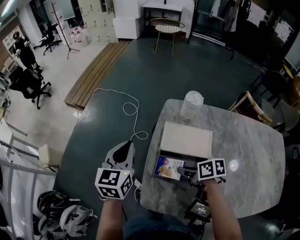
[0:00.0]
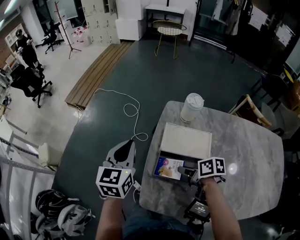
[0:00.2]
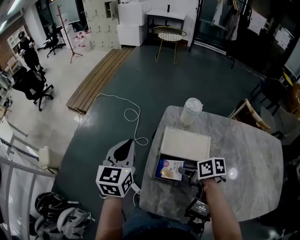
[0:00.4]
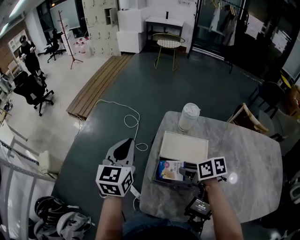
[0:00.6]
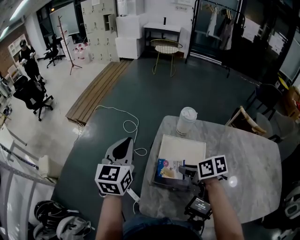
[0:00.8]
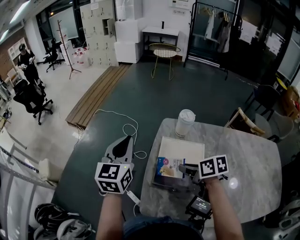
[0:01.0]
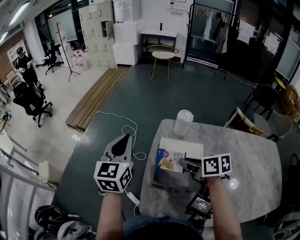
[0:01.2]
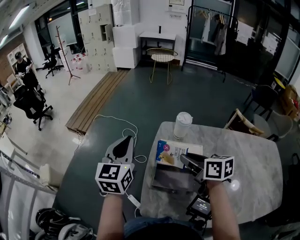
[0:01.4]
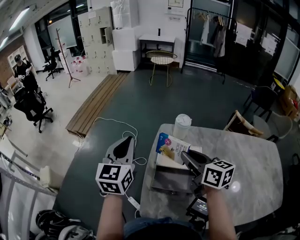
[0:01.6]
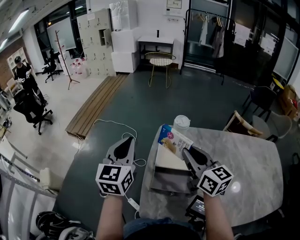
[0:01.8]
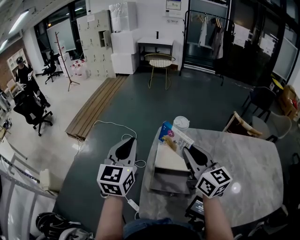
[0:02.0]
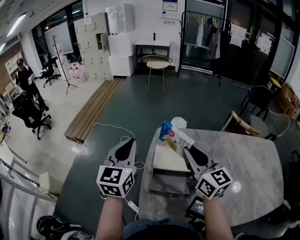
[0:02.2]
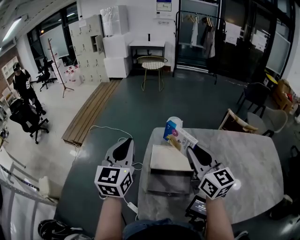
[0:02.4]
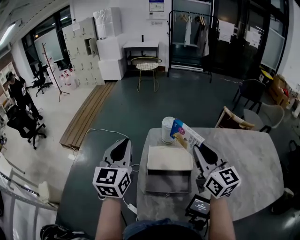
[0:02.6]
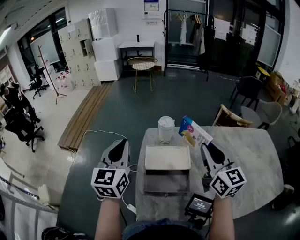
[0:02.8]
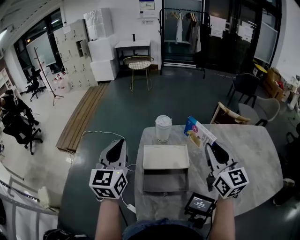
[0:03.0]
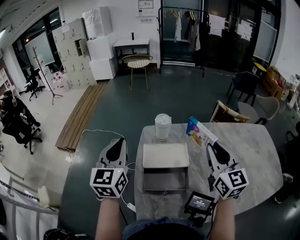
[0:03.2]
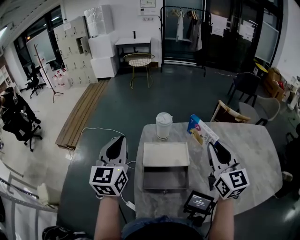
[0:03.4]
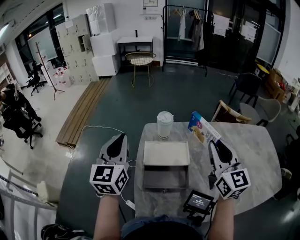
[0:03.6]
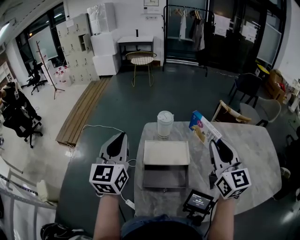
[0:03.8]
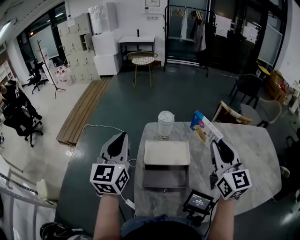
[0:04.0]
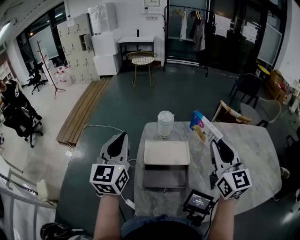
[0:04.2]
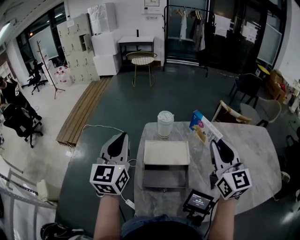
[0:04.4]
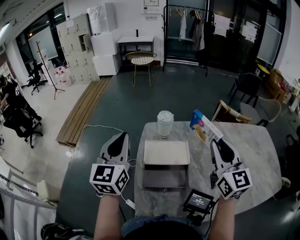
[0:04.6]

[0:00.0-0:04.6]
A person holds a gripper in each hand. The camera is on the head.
0.0 to 1.6 s: The right gripper is displaced upward by some 20 cm, and turns by approximately 50 degrees. Meanwhile the left gripper heads upward, covering about 10 cm.
1.6 to 3.0 s: The left gripper is displaced to the right by some 5 cm, while the right gripper moves to the right and upward, approximately 15 cm, and changes its angle by roughly 40 degrees.
3.0 to 4.6 s: There are only small adjustments of the grippers.

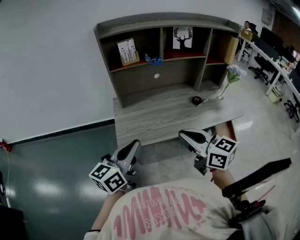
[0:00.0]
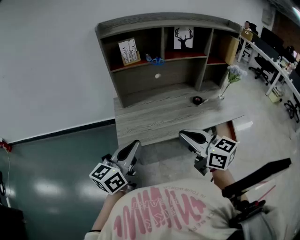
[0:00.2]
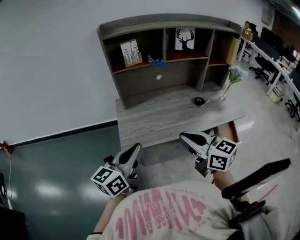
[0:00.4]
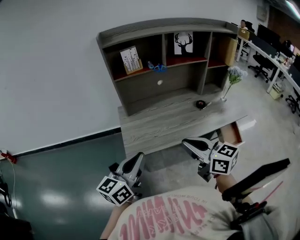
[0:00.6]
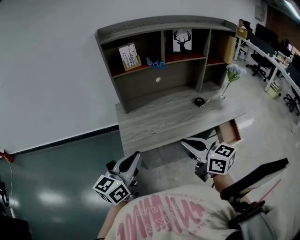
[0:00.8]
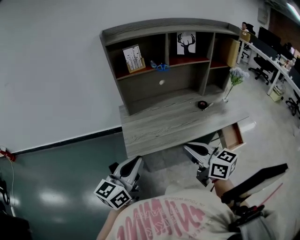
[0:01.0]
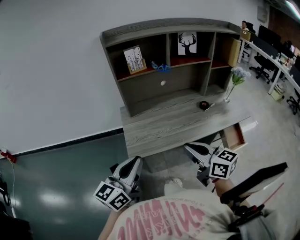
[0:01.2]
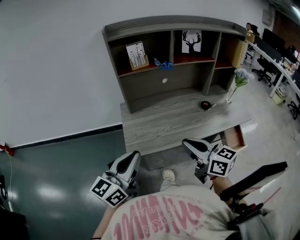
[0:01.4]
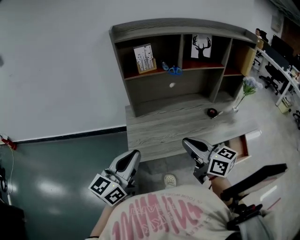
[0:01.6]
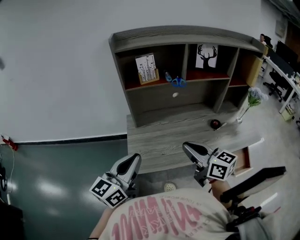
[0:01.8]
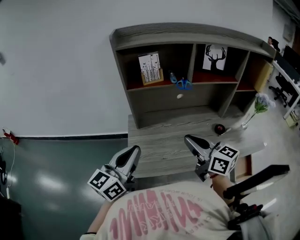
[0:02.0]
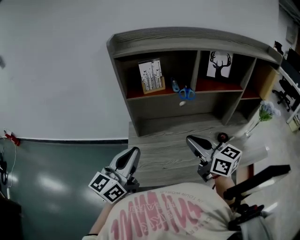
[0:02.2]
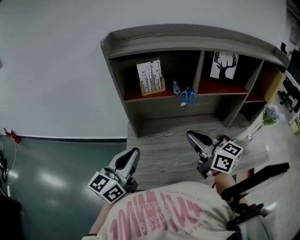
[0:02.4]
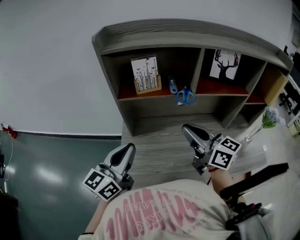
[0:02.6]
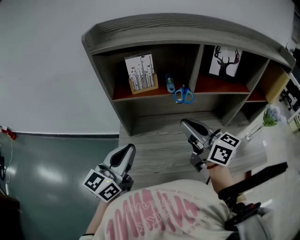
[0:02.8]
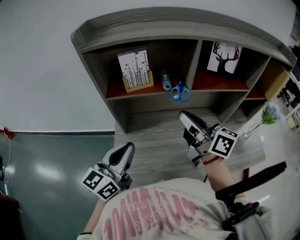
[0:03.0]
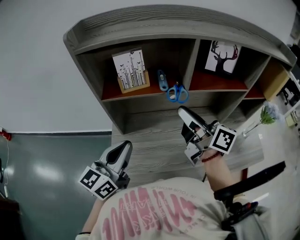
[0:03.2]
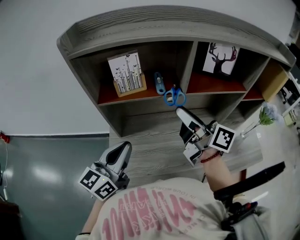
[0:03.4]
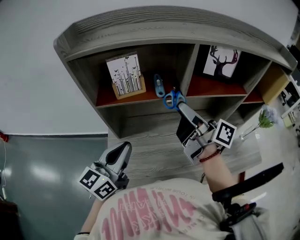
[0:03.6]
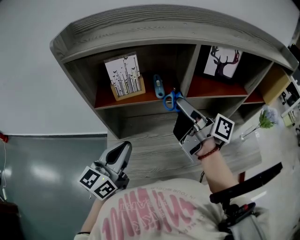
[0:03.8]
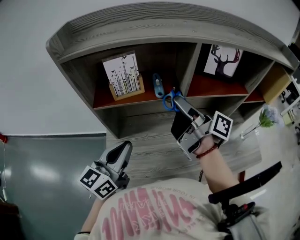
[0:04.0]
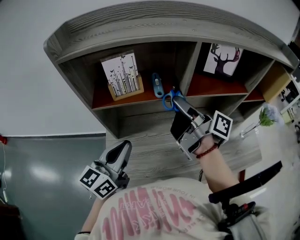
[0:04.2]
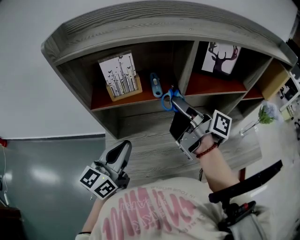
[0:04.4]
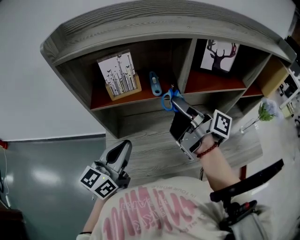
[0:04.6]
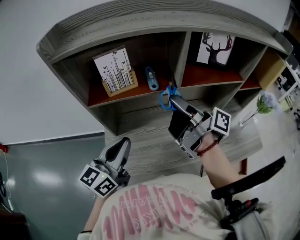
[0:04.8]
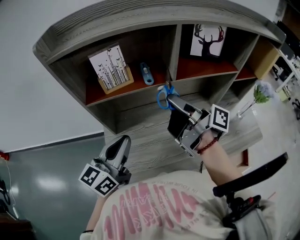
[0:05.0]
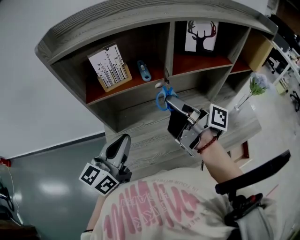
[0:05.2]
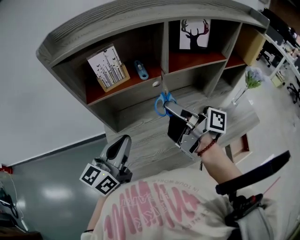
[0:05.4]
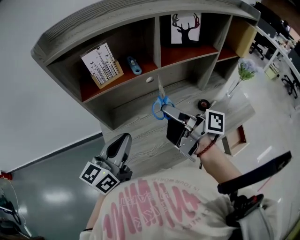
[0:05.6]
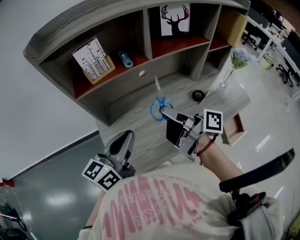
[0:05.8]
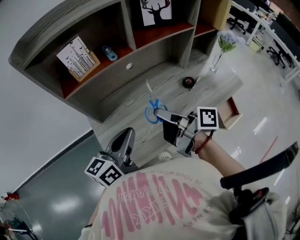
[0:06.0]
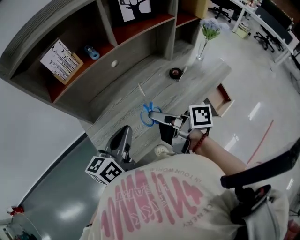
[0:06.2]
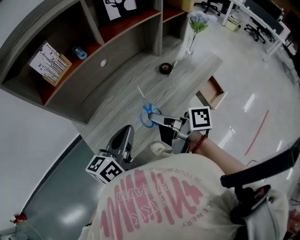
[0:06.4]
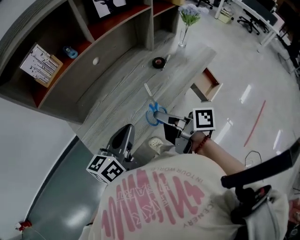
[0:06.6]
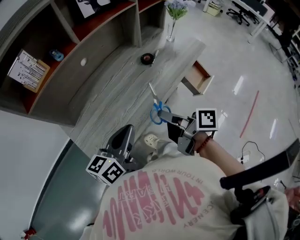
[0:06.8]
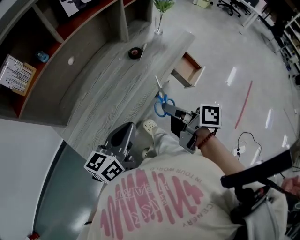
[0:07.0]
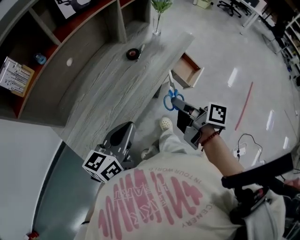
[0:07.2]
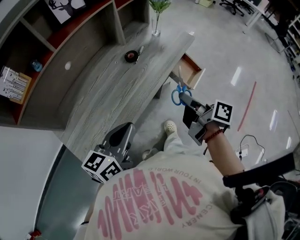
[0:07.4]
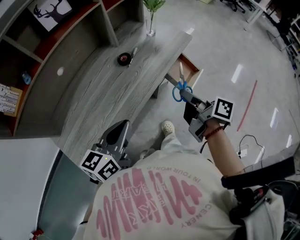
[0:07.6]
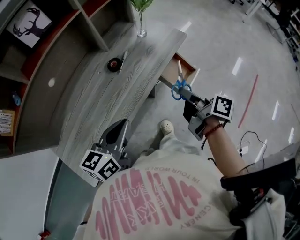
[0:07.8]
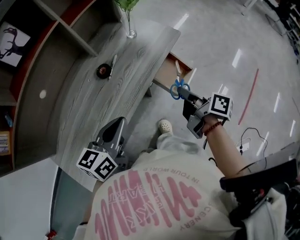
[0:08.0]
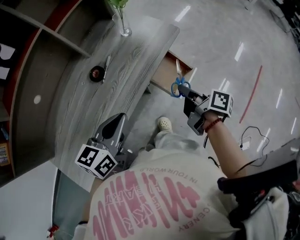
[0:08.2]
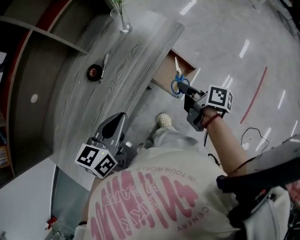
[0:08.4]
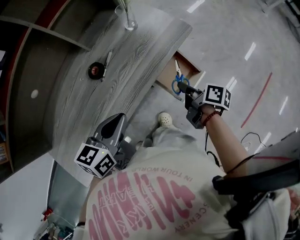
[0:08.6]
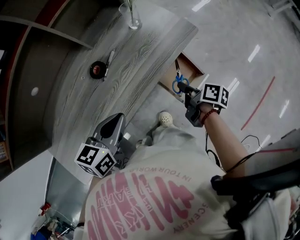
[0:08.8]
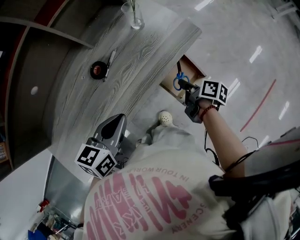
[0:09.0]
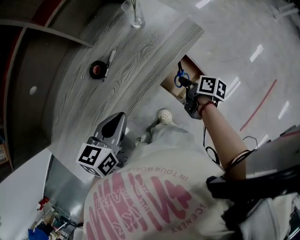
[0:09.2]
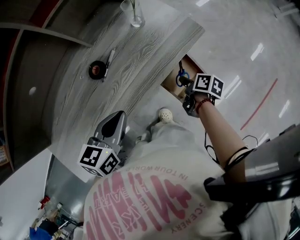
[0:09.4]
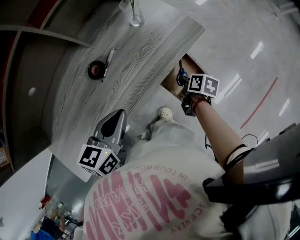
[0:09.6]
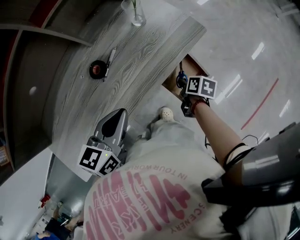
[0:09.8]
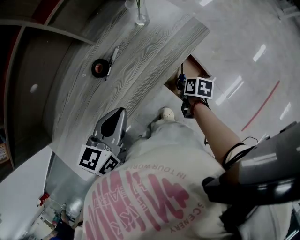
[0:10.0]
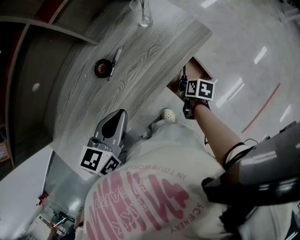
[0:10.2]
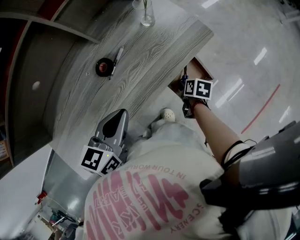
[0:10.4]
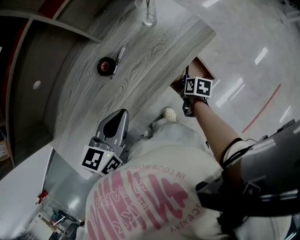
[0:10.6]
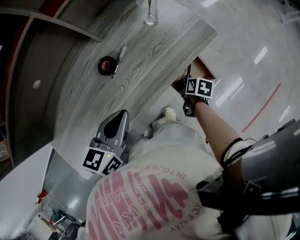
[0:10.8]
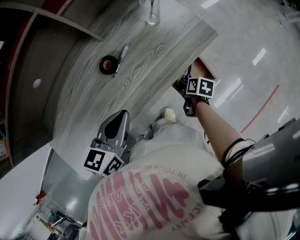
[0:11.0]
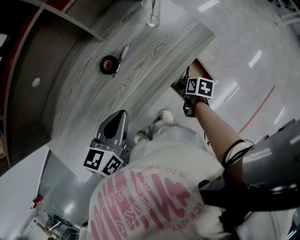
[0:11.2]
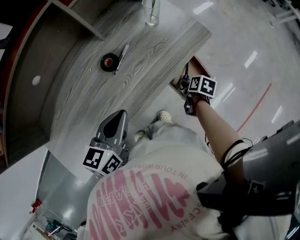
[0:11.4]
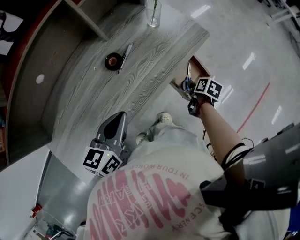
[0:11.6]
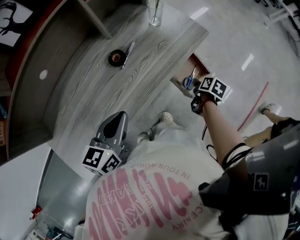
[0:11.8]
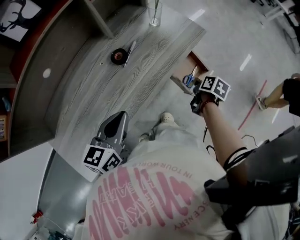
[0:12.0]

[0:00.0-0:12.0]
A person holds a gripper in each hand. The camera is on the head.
0.0 to 1.6 s: The right gripper moves forward, about 5 cm. The left gripper travels to the left by some 5 cm.
1.6 to 3.0 s: Both grippers move forward, roughly 25 cm.
3.0 to 4.4 s: Both grippers travel together forward, roughly 5 cm. The right gripper changes its angle by some 40 degrees, and opens, then closes once more.
4.4 to 6.0 s: The left gripper heads backward, covering some 10 cm, and rotates some 20 degrees, while the right gripper heads backward, covering roughly 20 cm.
6.0 to 7.6 s: The left gripper changes place by some 20 cm, and changes its angle by approximately 30 degrees, while the right gripper changes place by roughly 35 cm, and rotates about 50 degrees.
7.6 to 9.0 s: The right gripper shifts approximately 30 cm downward, forward and to the right, and turns by about 30 degrees, while the left gripper goes approximately 20 cm forward, to the right and downward, and turns by roughly 20 degrees.
9.0 to 10.4 s: The right gripper moves downward, some 10 cm, and changes its angle by roughly 30 degrees.
10.4 to 12.0 s: The left gripper goes some 10 cm backward and to the left, while the right gripper heads upward, covering some 10 cm, rotates some 20 degrees, and opens, then closes again.

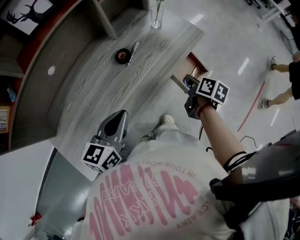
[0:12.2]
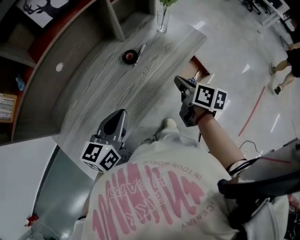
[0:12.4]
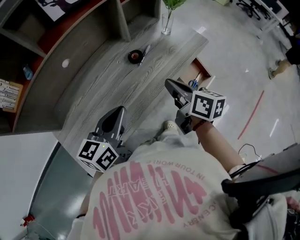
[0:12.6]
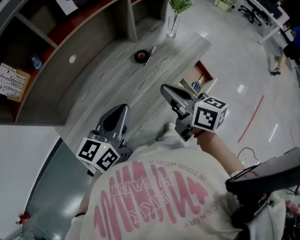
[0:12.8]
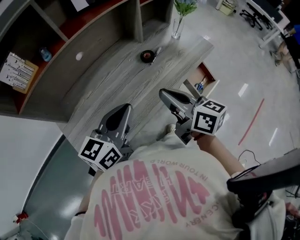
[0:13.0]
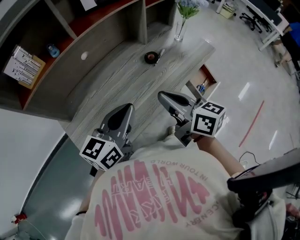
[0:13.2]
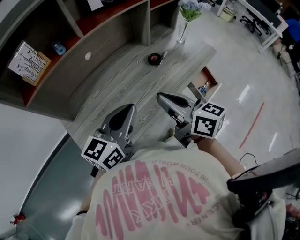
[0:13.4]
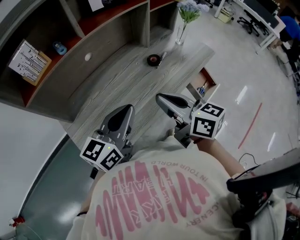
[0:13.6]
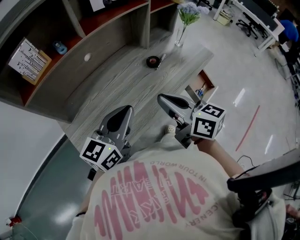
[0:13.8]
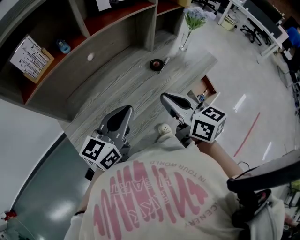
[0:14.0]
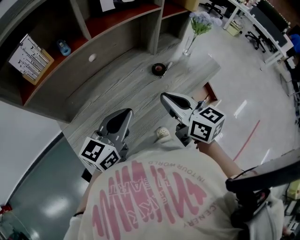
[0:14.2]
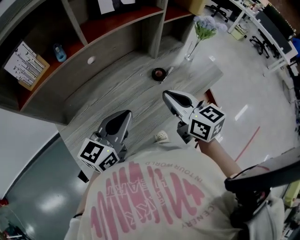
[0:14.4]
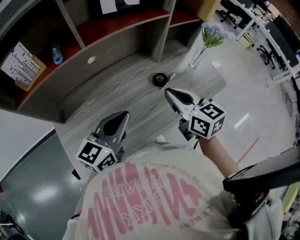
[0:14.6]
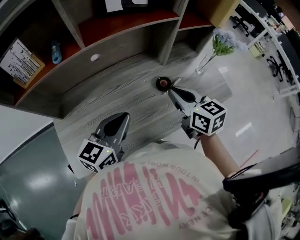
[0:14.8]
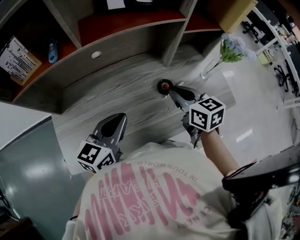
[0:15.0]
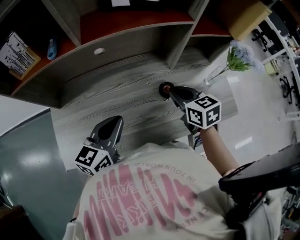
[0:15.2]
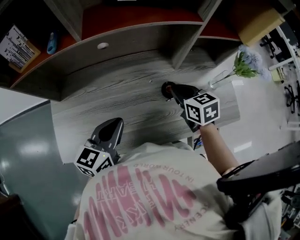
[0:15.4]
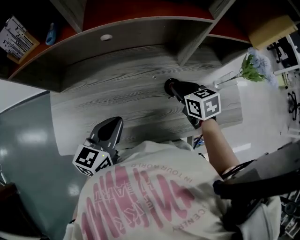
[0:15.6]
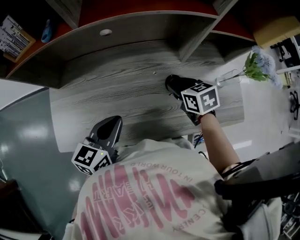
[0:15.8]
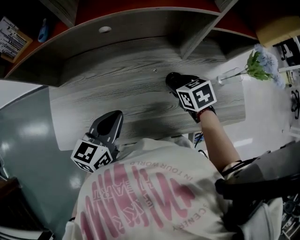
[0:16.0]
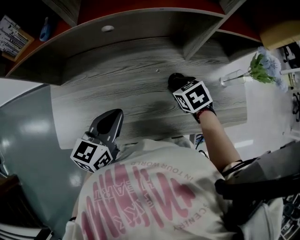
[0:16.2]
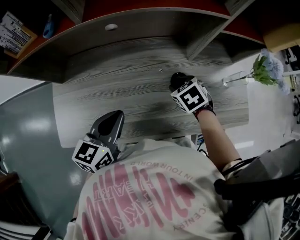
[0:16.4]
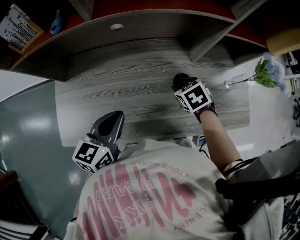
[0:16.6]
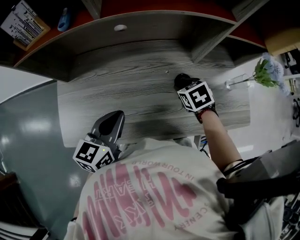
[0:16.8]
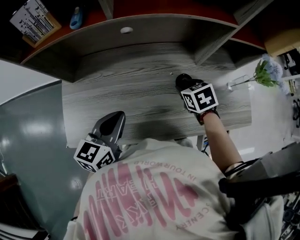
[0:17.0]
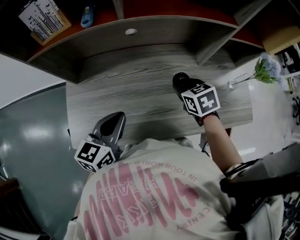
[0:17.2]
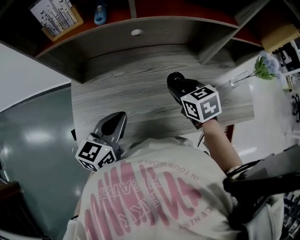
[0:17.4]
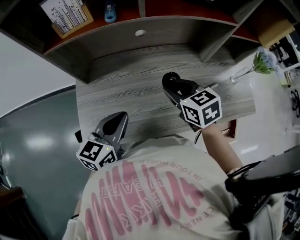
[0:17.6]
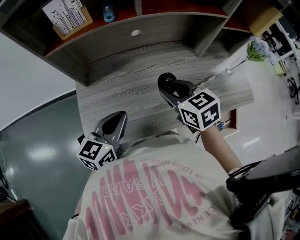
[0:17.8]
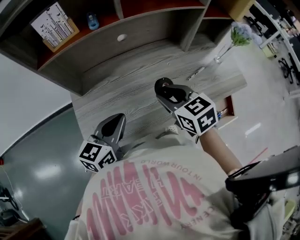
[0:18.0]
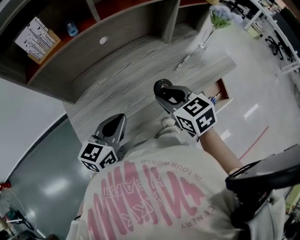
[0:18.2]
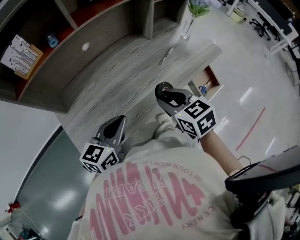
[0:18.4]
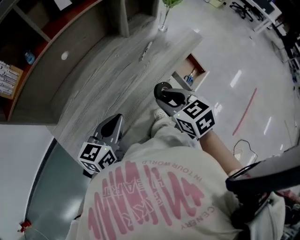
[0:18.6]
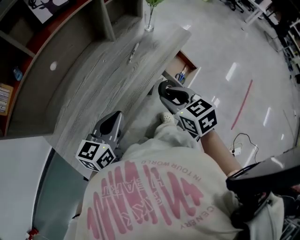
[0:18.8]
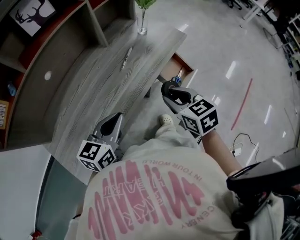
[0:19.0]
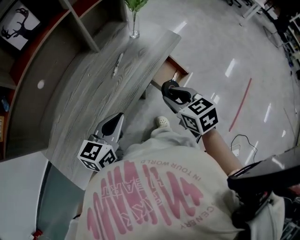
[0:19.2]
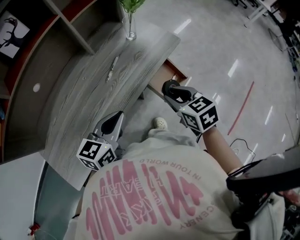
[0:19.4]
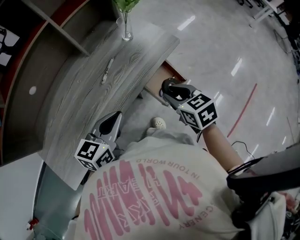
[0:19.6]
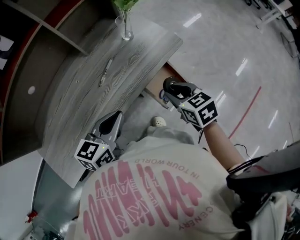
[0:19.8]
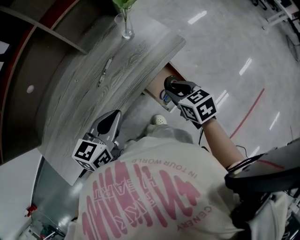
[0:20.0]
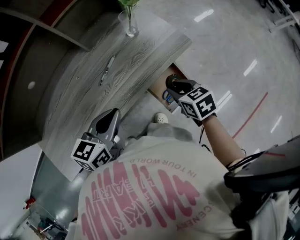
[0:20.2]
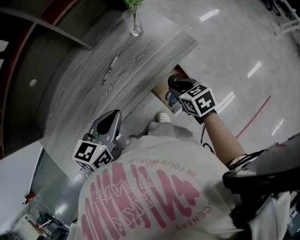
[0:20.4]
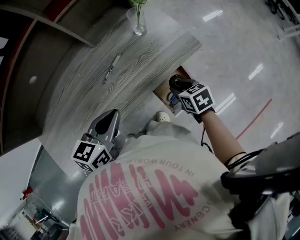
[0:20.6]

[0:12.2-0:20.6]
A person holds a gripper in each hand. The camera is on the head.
12.2 to 13.6 s: The right gripper travels to the left, upward and backward by approximately 40 cm, and points its fingers some 30 degrees further upward, while the left gripper is displaced to the left, upward and backward by some 15 cm.
13.6 to 15.0 s: The left gripper travels forward and downward by approximately 10 cm, and turns by roughly 20 degrees. The right gripper travels forward and to the right by about 25 cm, and rotates roughly 30 degrees.
15.0 to 16.4 s: The right gripper travels downward by about 15 cm, points its fingers approximately 40 degrees further downward, and opens its fingers; the left gripper ends up about 5 cm from where it was.
16.4 to 17.8 s: The left gripper is displaced to the left by some 15 cm; the right gripper goes some 25 cm to the left, upward and backward, and angles its fingers upward, by roughly 30 degrees.
17.8 to 19.2 s: The left gripper shifts by roughly 25 cm, and turns by some 40 degrees. The right gripper ends up roughly 35 cm from where it was, and turns by roughly 40 degrees.
19.2 to 20.6 s: The right gripper heads downward, forward and to the right, covering approximately 25 cm, and swivels some 20 degrees; the left gripper goes approximately 10 cm forward and to the right.
